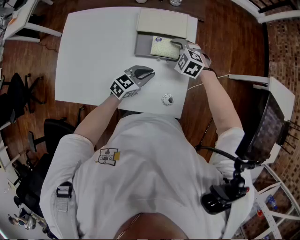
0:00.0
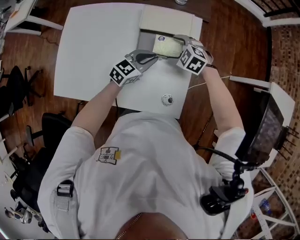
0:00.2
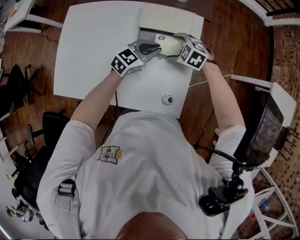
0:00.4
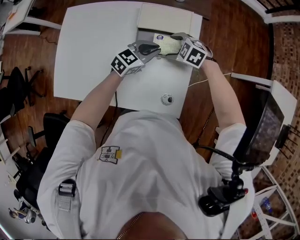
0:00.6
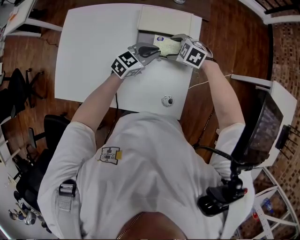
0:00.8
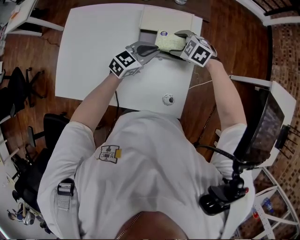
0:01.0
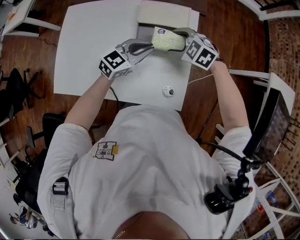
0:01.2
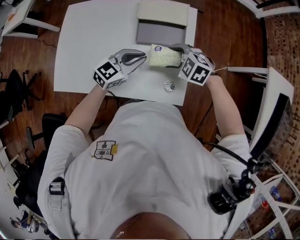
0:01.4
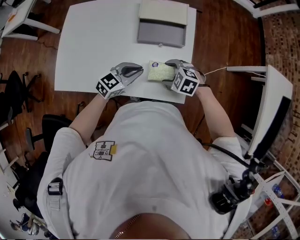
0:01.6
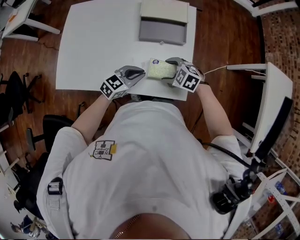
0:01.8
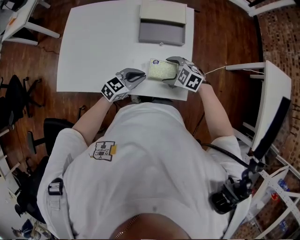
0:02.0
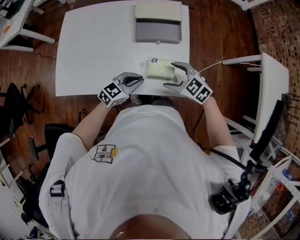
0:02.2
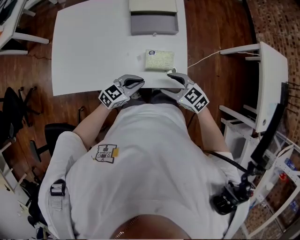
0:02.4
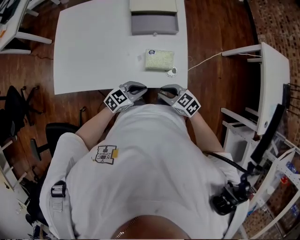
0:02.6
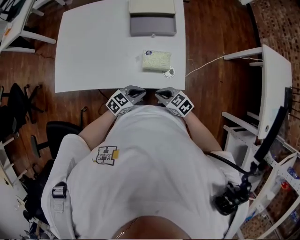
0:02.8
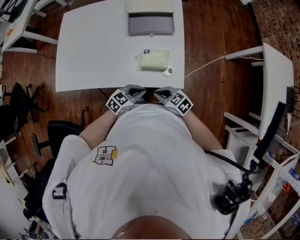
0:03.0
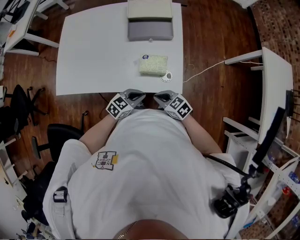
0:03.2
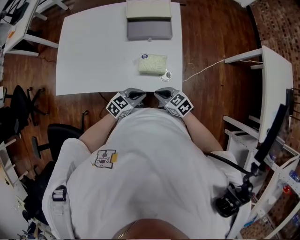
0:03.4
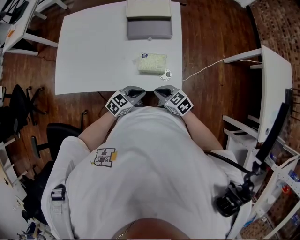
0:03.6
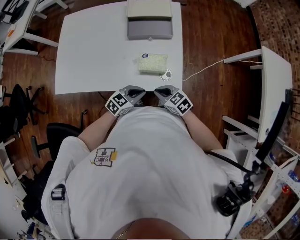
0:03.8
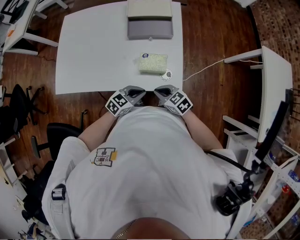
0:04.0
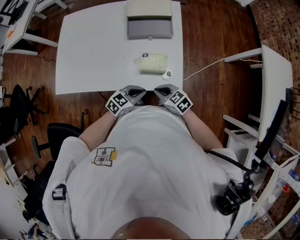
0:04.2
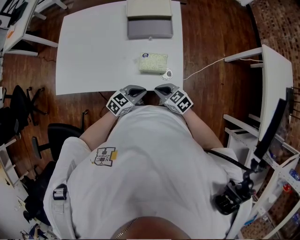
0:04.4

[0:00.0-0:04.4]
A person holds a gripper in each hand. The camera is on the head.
0:00.0 to 0:01.4: The left gripper shifts approximately 10 cm upward; the right gripper changes place by about 10 cm.
0:01.4 to 0:03.0: The right gripper swings up and down, some 10 cm each way, with 2 reversals, changes its angle by roughly 40 degrees, and closes up; the left gripper ends up approximately 25 cm from where it was, and turns by approximately 20 degrees.
0:03.0 to 0:04.4: There are only small adjustments of the grippers.

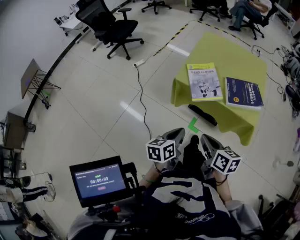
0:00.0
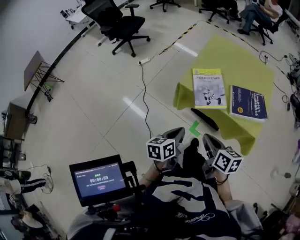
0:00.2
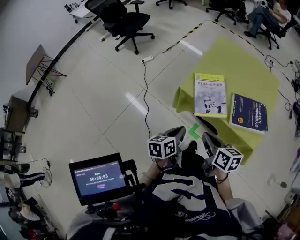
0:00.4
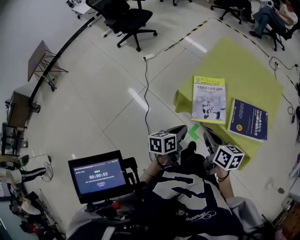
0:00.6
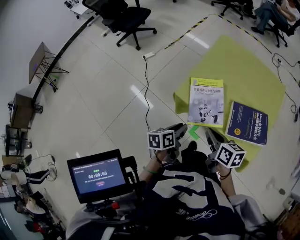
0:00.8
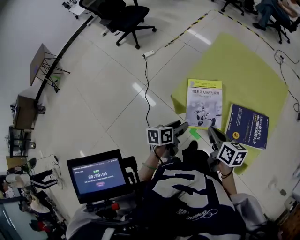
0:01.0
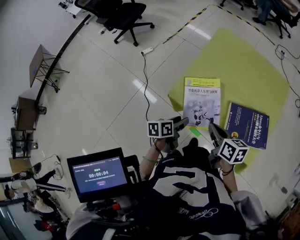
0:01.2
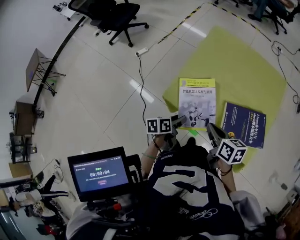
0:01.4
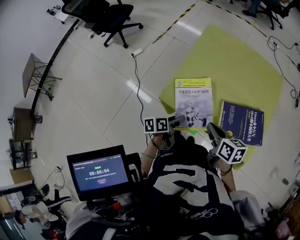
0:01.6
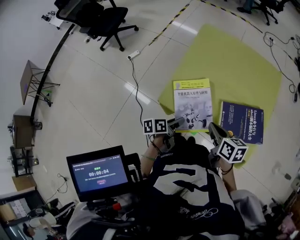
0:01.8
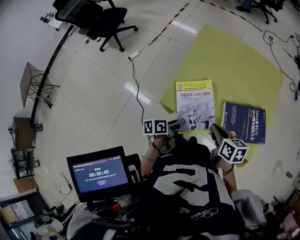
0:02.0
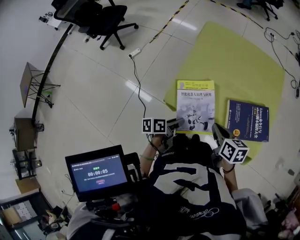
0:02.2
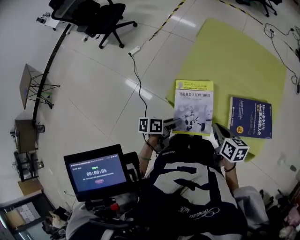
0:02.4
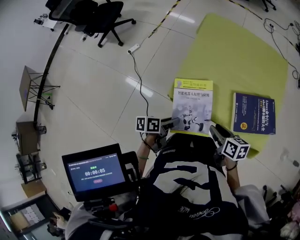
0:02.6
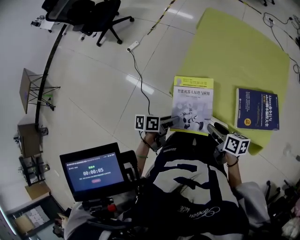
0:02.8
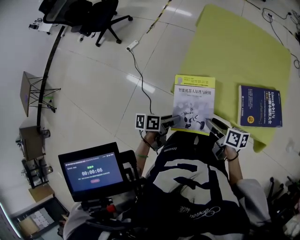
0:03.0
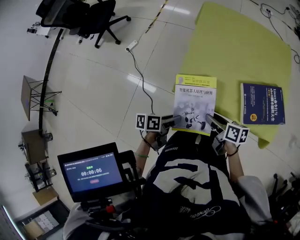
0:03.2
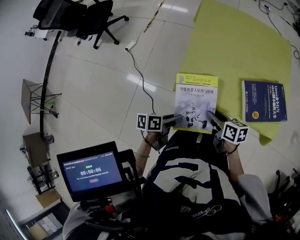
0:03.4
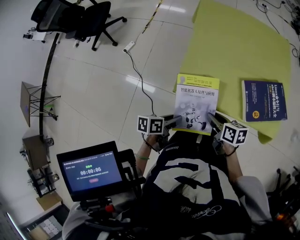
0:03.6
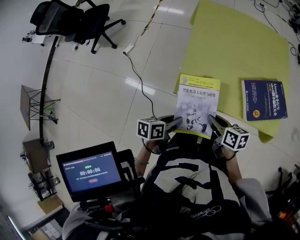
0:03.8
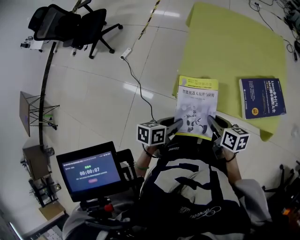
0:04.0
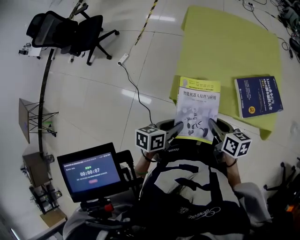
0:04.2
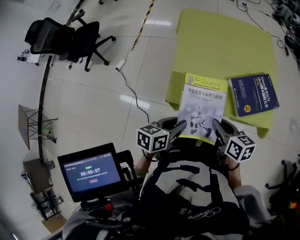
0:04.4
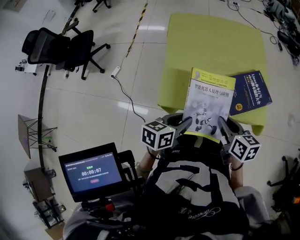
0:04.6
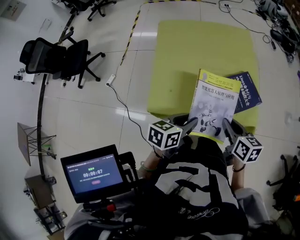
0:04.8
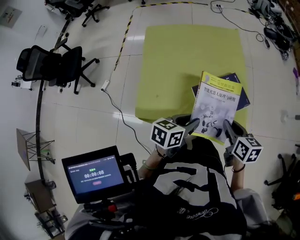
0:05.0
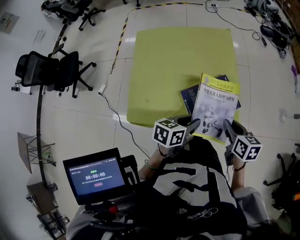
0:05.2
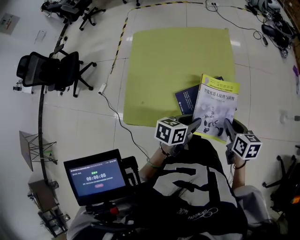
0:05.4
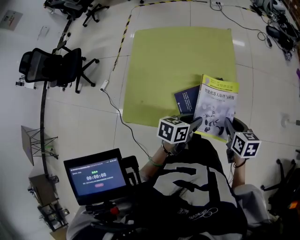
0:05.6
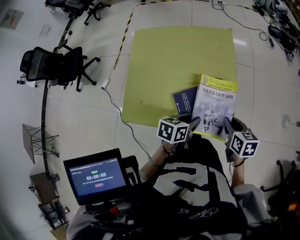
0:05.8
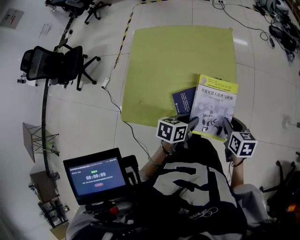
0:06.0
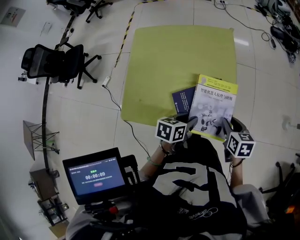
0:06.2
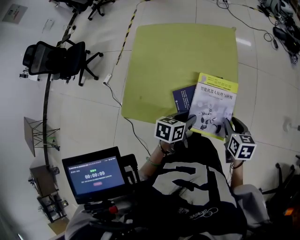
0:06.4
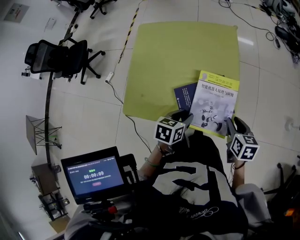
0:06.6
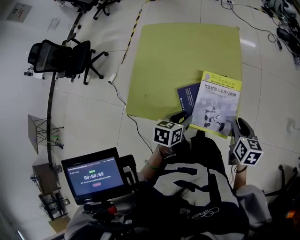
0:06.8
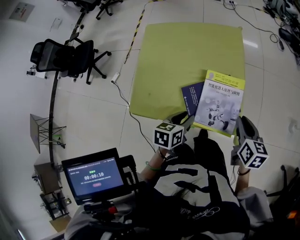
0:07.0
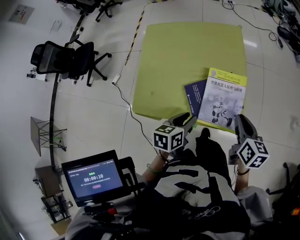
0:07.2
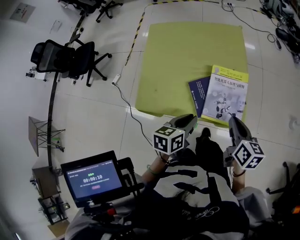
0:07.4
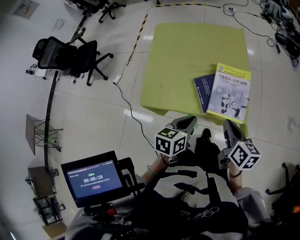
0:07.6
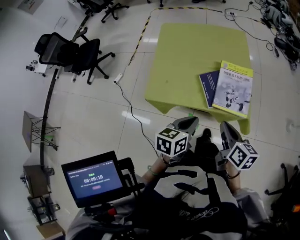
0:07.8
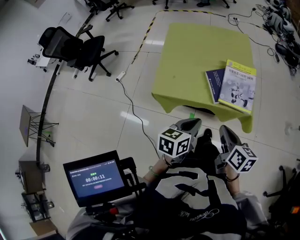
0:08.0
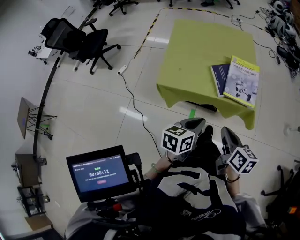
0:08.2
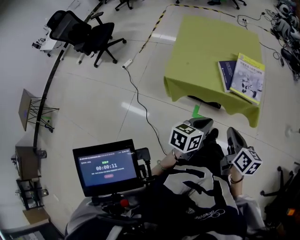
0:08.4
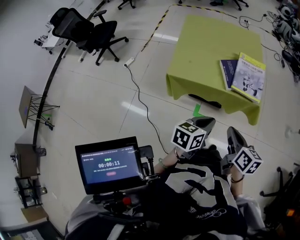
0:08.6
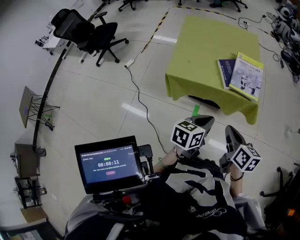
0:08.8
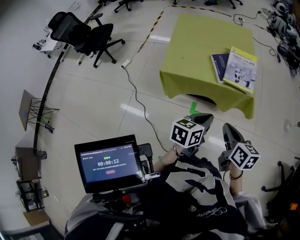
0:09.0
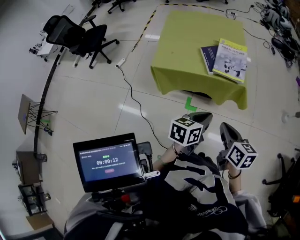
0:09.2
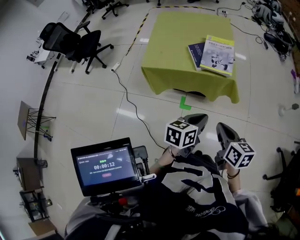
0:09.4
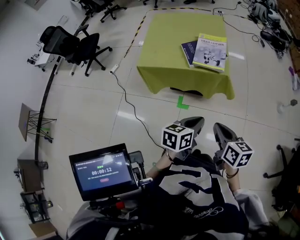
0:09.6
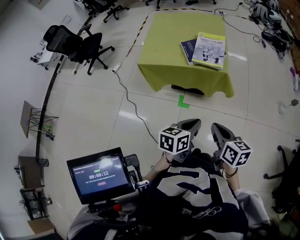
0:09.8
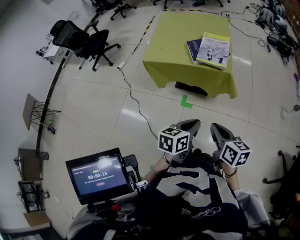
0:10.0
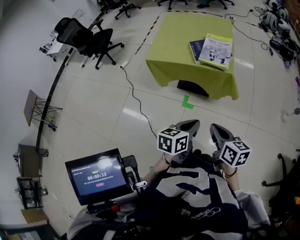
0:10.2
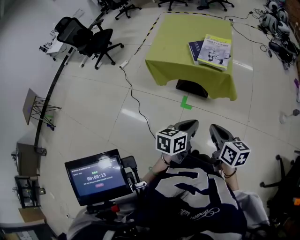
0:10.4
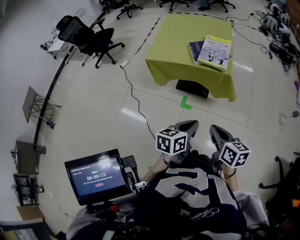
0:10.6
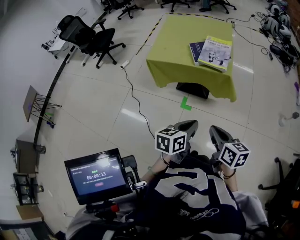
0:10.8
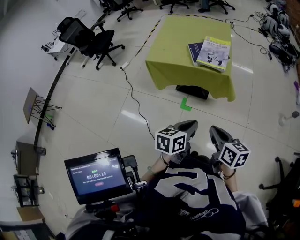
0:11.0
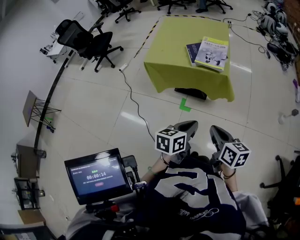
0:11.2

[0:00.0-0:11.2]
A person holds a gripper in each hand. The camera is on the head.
0:00.0 to 0:01.6: The left gripper travels forward and downward by about 30 cm, rotates about 30 degrees, and opens; the right gripper travels forward and to the right by approximately 30 cm.
0:01.6 to 0:03.2: The right gripper heads downward and to the left, covering some 15 cm, and opens up. The left gripper moves to the left and backward, about 10 cm, and rotates approximately 20 degrees.
0:03.2 to 0:04.8: The right gripper goes some 25 cm to the right and upward, rotates some 30 degrees, and closes up; the left gripper goes some 25 cm to the right, upward and forward, and swivels approximately 40 degrees.
0:04.8 to 0:06.4: Both grippers travel together to the right, forward and downward, approximately 25 cm.
0:06.4 to 0:08.0: The left gripper is displaced backward, upward and to the left by approximately 25 cm, and closes up. The right gripper travels backward, to the left and upward by approximately 30 cm, changes its angle by approximately 30 degrees, and closes its fingers.
0:08.0 to 0:09.6: The two grippers go about 25 cm backward and to the right.
0:09.6 to 0:11.2: Both grippers travel together backward, approximately 5 cm.

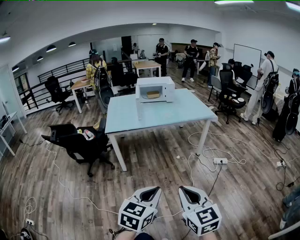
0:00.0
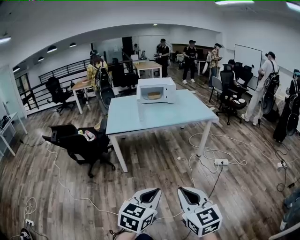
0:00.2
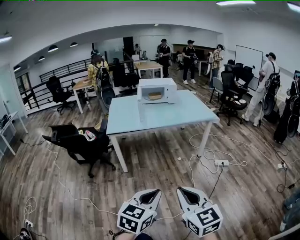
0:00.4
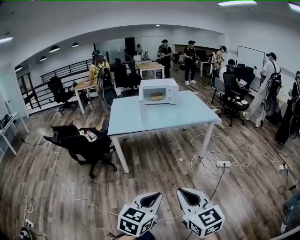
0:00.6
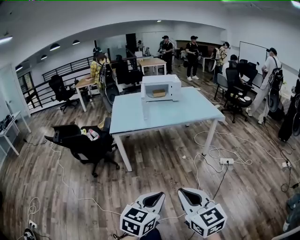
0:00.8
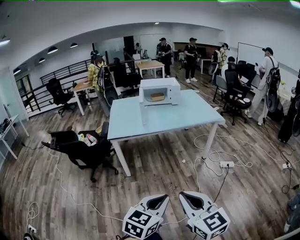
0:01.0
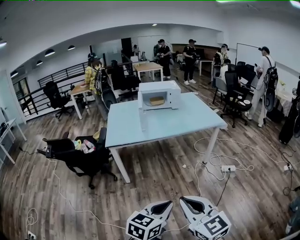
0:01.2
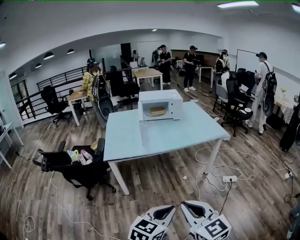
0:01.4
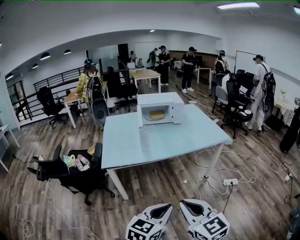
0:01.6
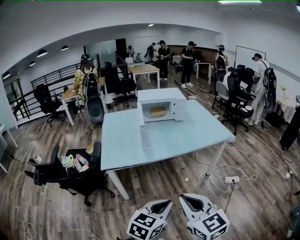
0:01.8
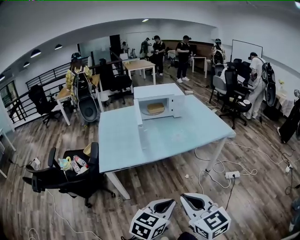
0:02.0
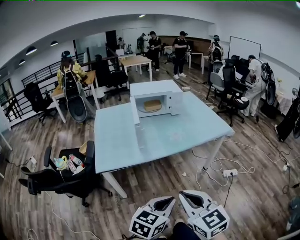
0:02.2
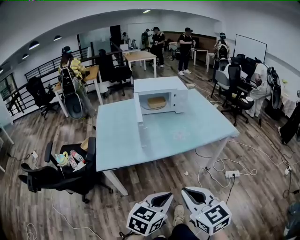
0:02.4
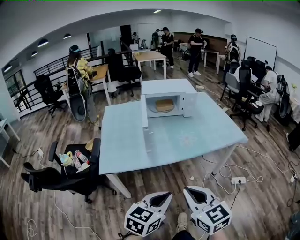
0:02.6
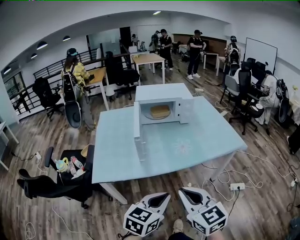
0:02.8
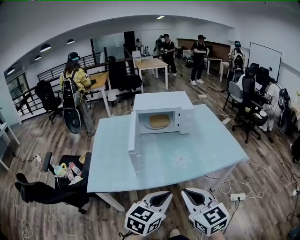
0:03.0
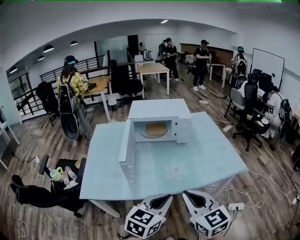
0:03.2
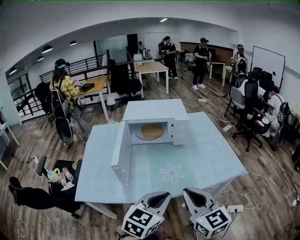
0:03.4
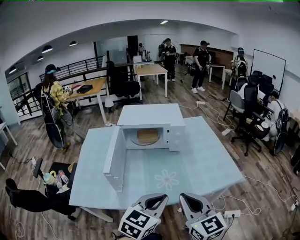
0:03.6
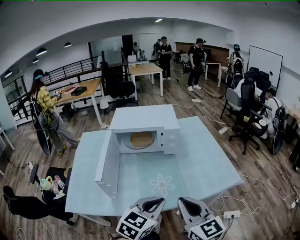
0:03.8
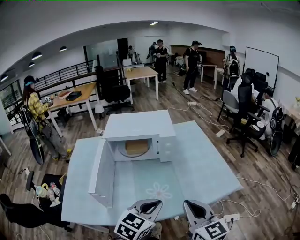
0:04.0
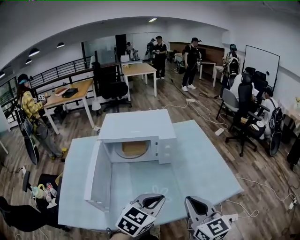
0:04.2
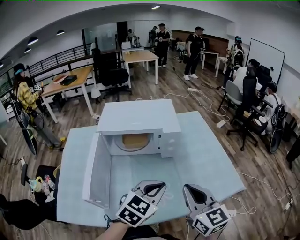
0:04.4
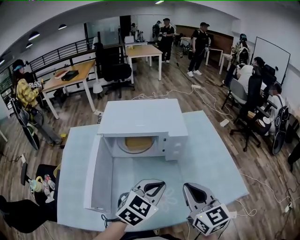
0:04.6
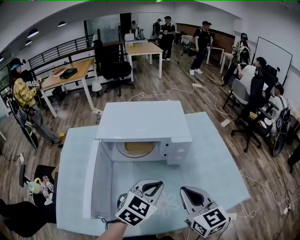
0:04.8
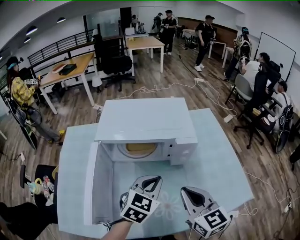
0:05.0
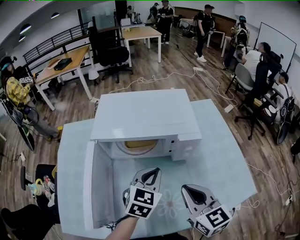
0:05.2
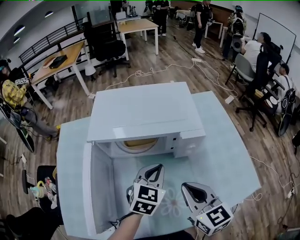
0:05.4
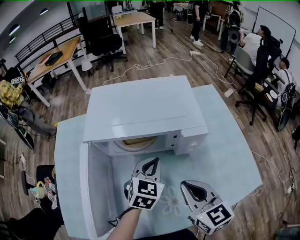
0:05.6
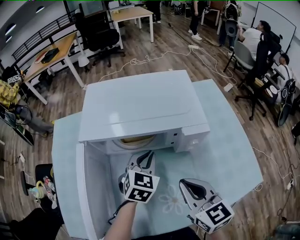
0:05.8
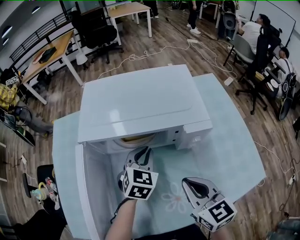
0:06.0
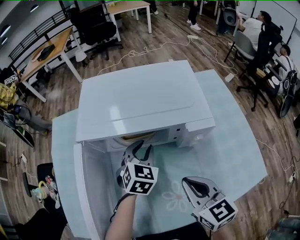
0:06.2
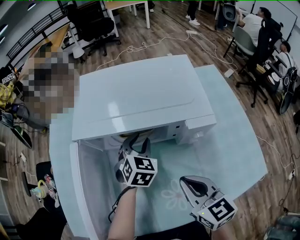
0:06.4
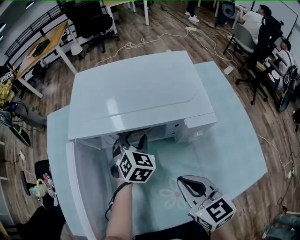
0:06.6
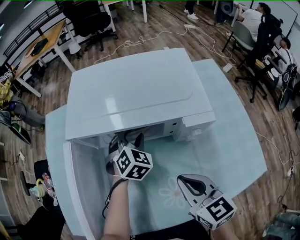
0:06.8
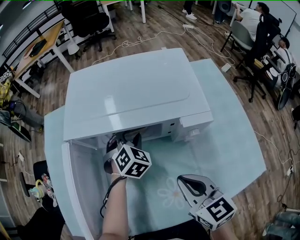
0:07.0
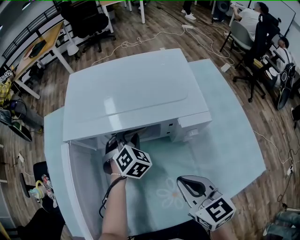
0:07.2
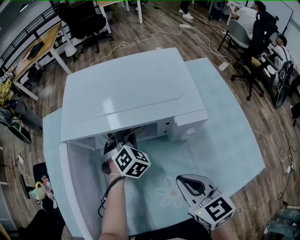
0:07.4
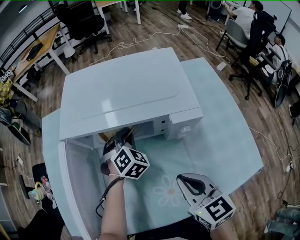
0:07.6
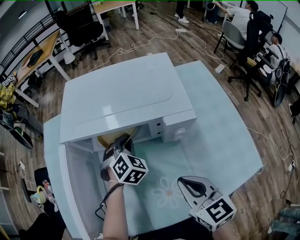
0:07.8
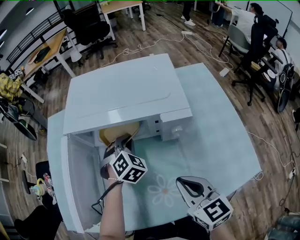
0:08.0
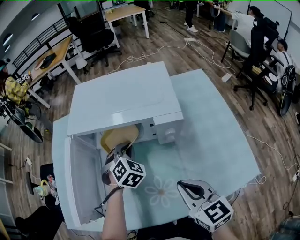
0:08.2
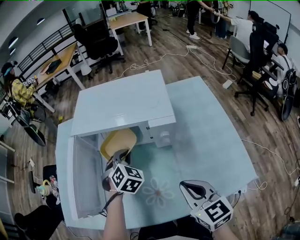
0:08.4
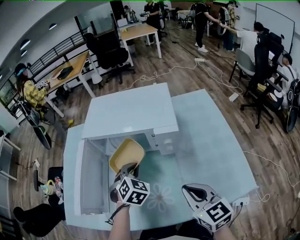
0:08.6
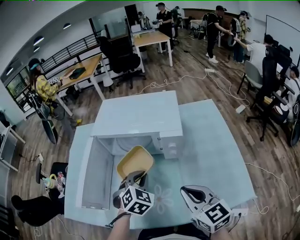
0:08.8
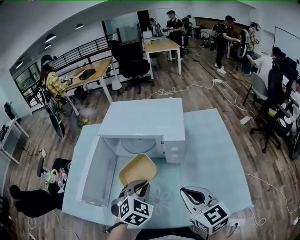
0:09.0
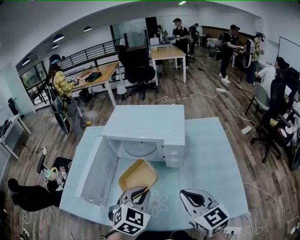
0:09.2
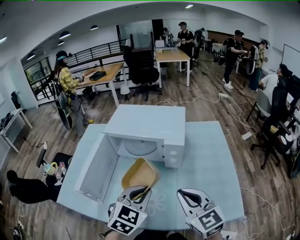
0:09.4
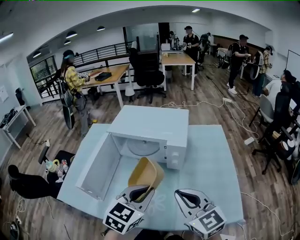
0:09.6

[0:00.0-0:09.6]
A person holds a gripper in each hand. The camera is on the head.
0:00.0 to 0:01.6: Both grippers move forward, about 25 cm.
0:01.6 to 0:03.2: The pair of grippers is taken forward, some 40 cm.
0:03.2 to 0:04.8: Both grippers move forward, approximately 35 cm.
0:04.8 to 0:06.4: The left gripper travels forward and downward by approximately 25 cm, changes its angle by roughly 30 degrees, and opens, while the right gripper travels downward and forward by about 10 cm.
0:06.4 to 0:08.0: The left gripper swivels about 20 degrees, while the right gripper shifts by roughly 5 cm.
0:08.0 to 0:09.6: The left gripper heads backward and upward, covering roughly 35 cm, and rotates roughly 40 degrees. Meanwhile the right gripper heads upward and backward, covering approximately 15 cm, and swivels roughly 30 degrees.
